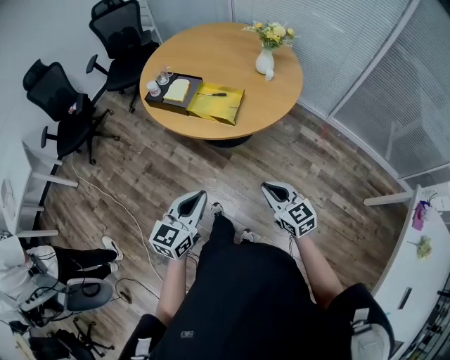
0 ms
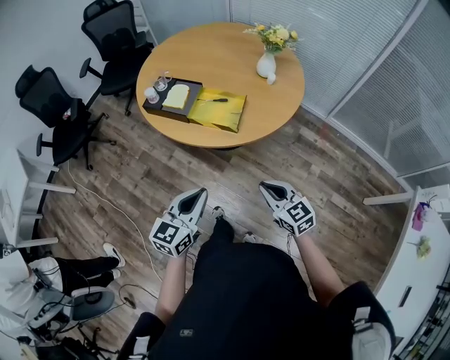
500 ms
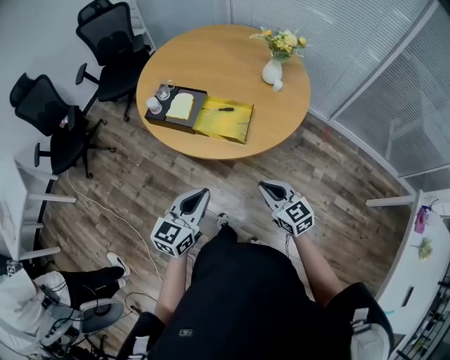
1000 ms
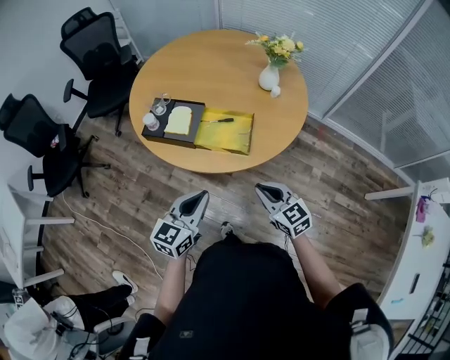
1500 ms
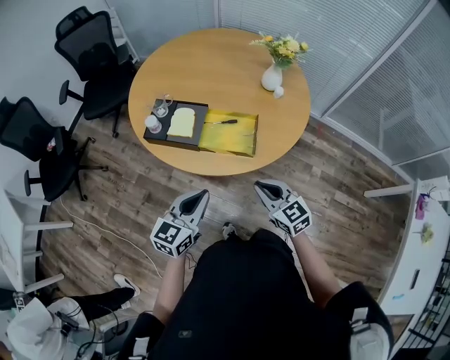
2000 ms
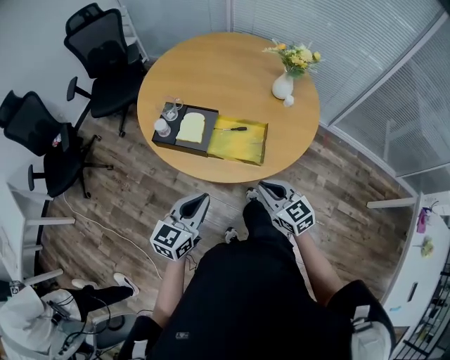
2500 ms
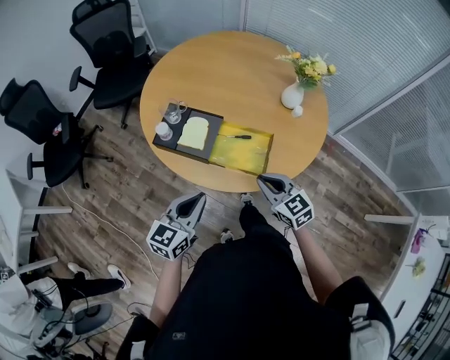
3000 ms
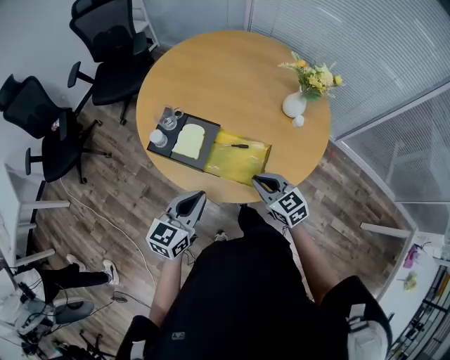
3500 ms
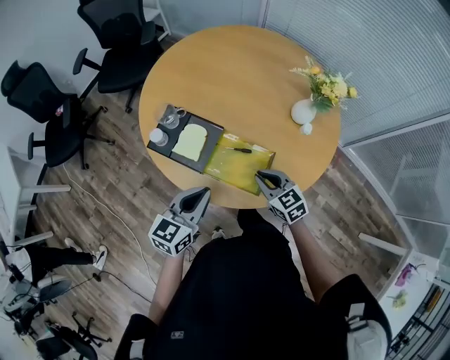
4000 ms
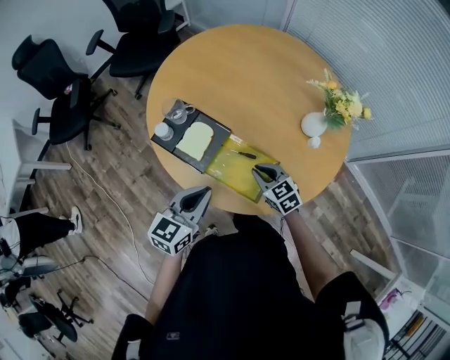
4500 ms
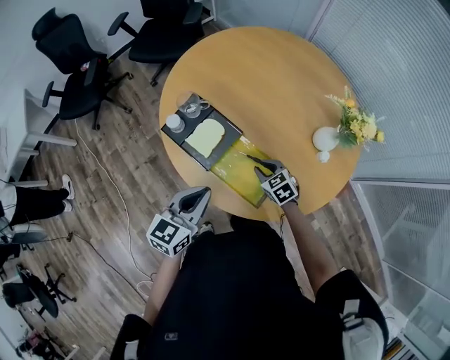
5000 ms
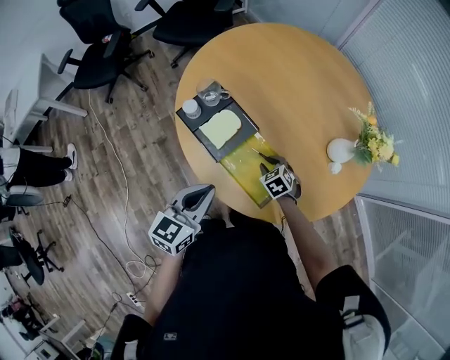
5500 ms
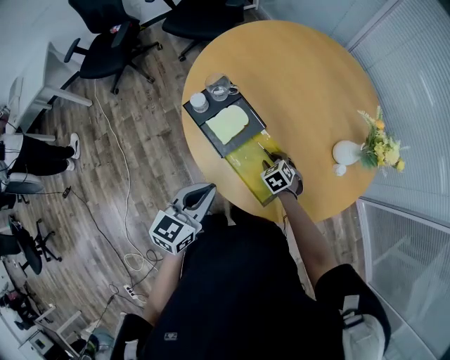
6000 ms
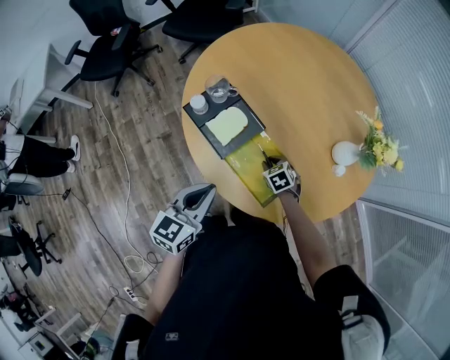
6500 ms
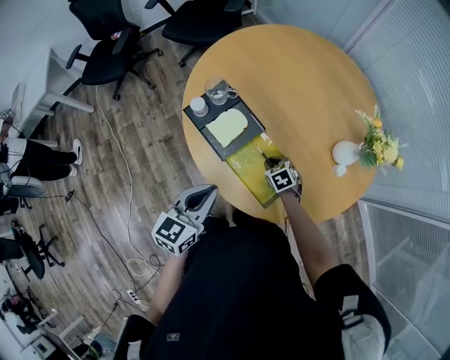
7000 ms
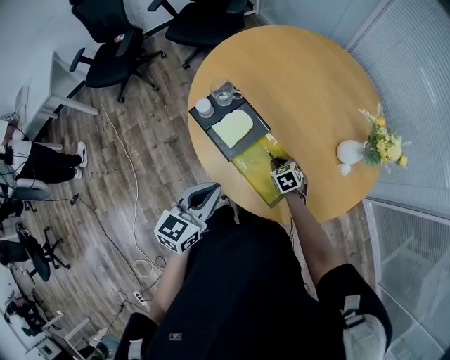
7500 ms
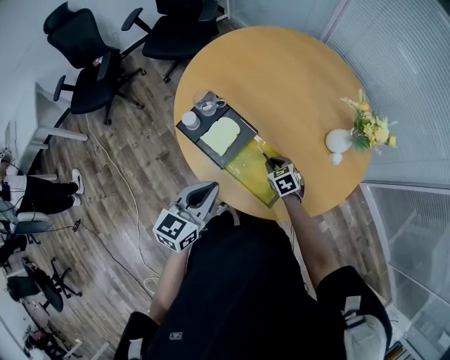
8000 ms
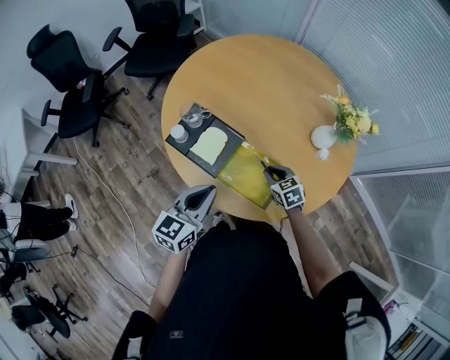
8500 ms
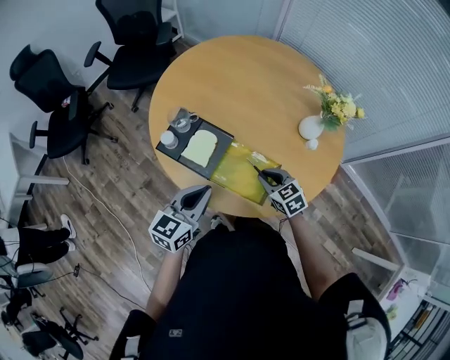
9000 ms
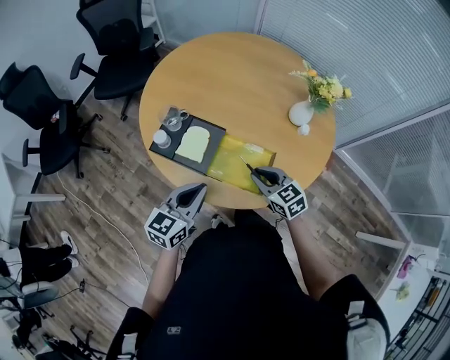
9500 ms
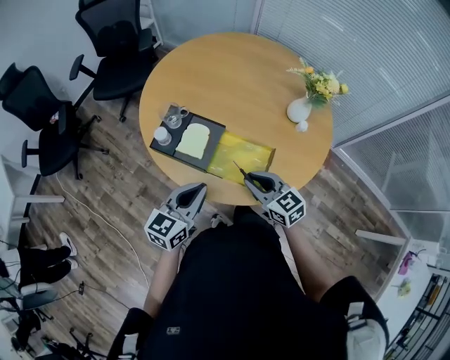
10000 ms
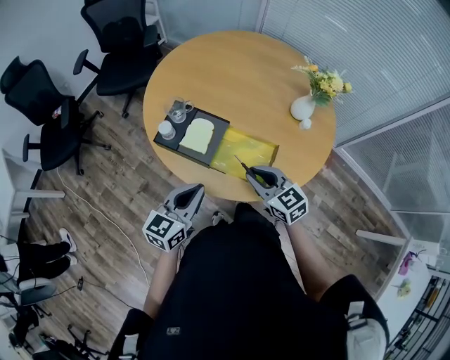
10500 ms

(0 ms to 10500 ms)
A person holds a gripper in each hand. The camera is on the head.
0 ms - 2000 ms: The two grippers go roughly 25 cm forward and to the left.
2000 ms - 4000 ms: Both grippers move forward, about 20 cm.
4000 ms - 6500 ms: The right gripper shifts about 20 cm downward and forward, and changes its angle by approximately 30 degrees; the left gripper rotates some 20 degrees.
6500 ms - 8500 ms: The right gripper is displaced upward by approximately 10 cm, and rotates some 20 degrees.
8500 ms - 10500 ms: The right gripper goes some 20 cm upward, backward and to the left, and turns by approximately 20 degrees, while the left gripper moves backward, approximately 5 cm.

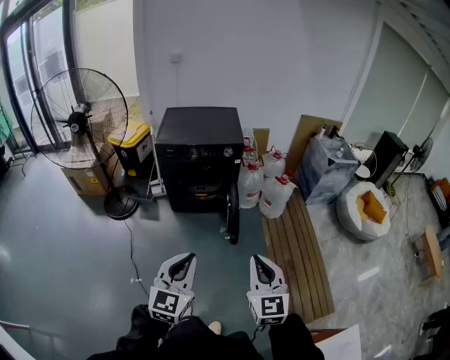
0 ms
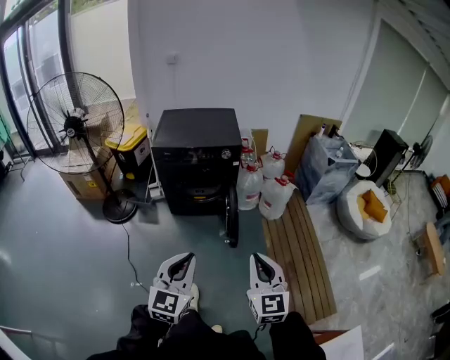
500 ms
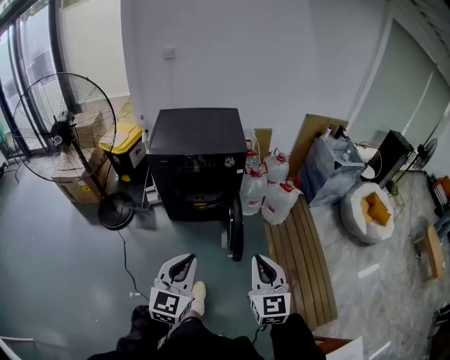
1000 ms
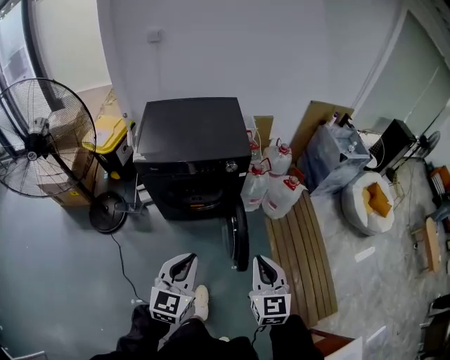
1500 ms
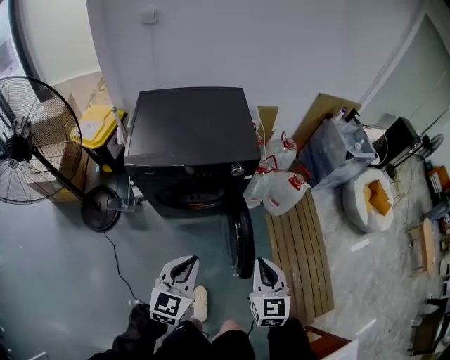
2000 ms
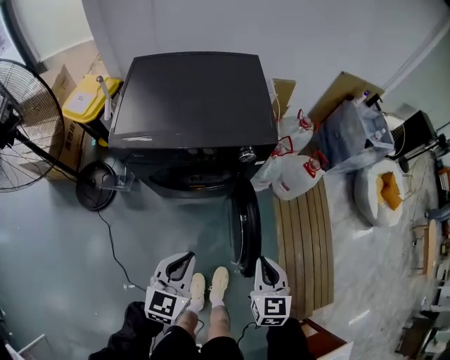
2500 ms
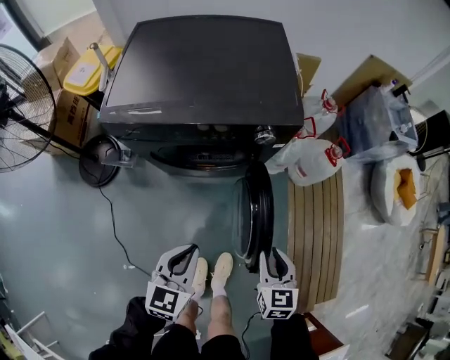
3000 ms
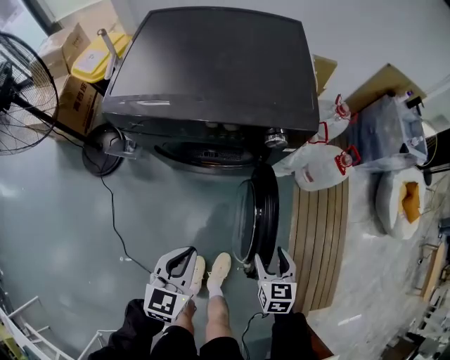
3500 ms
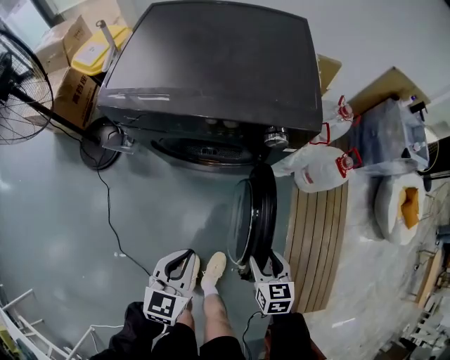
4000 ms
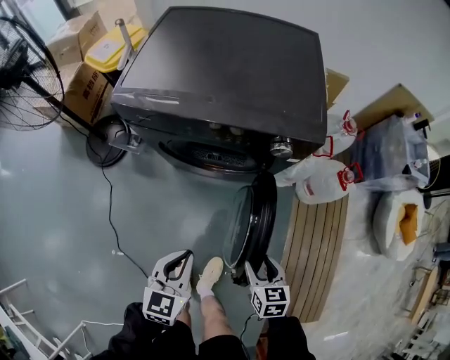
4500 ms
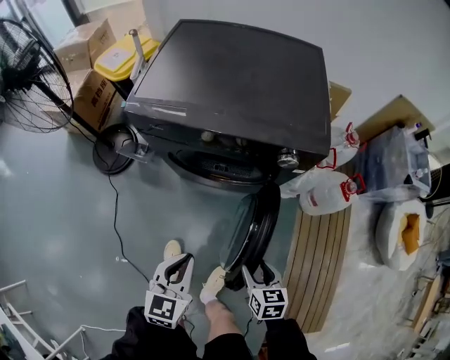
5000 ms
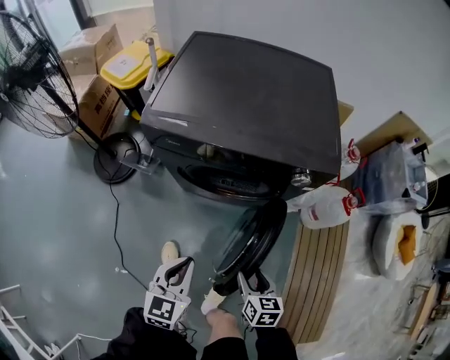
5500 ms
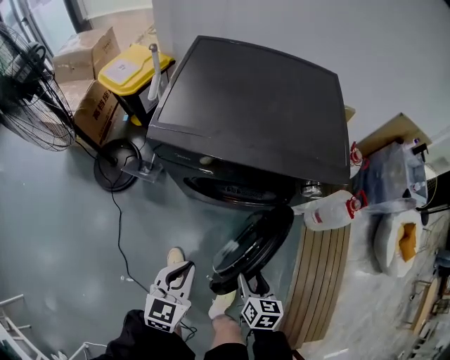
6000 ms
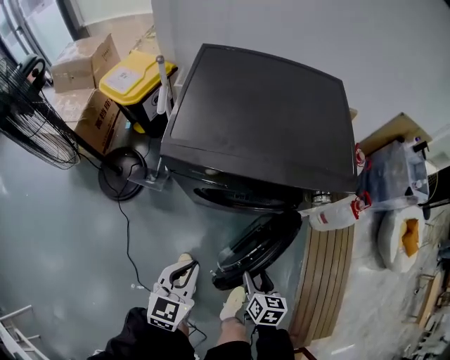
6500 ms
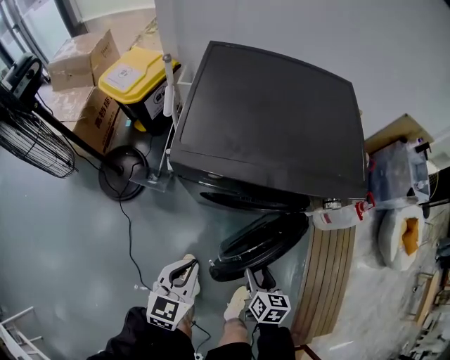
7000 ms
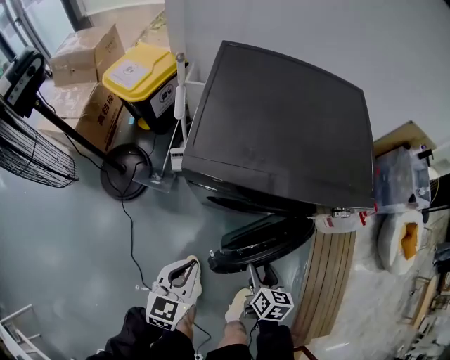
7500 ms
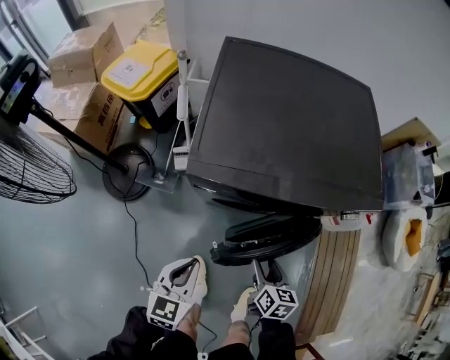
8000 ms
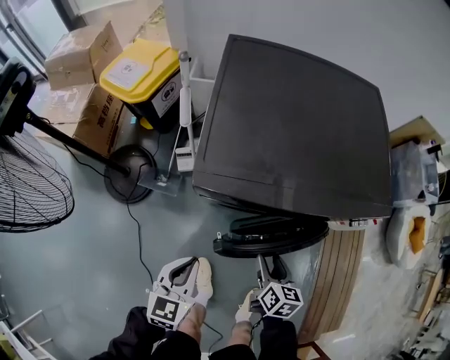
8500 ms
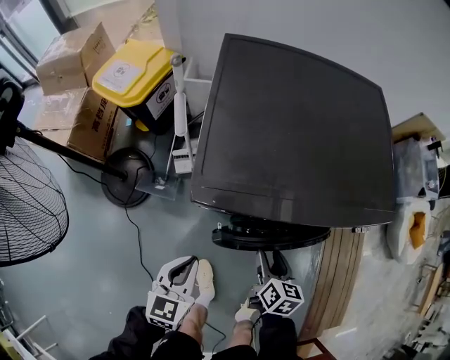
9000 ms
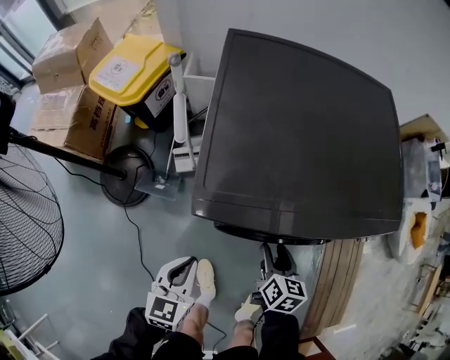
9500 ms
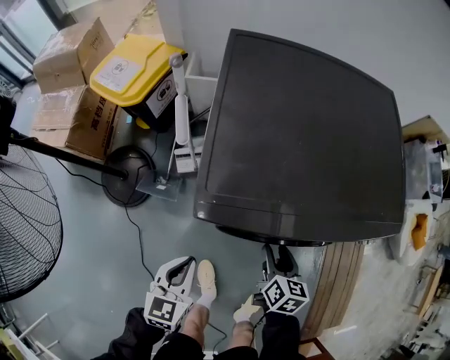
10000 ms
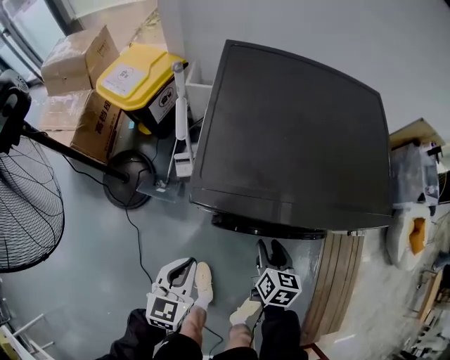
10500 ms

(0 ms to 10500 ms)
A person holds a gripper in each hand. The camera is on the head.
0 ms - 2000 ms: The pair of grippers is taken forward, some 50 cm.
2000 ms - 4000 ms: Both grippers travel together downward, approximately 30 cm. The left gripper swivels some 20 degrees. Meanwhile the right gripper turns by about 30 degrees, and opens.
4000 ms - 6500 ms: The right gripper goes approximately 20 cm to the left; the left gripper goes about 20 cm to the left and forward.
6500 ms - 8500 ms: The right gripper shifts about 20 cm forward and to the left, while the left gripper heads to the left and forward, covering some 15 cm.
8500 ms - 10500 ms: The right gripper heads forward, covering about 10 cm.

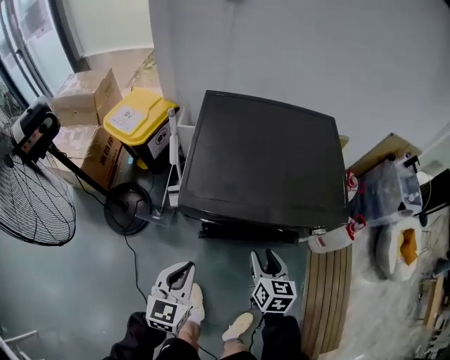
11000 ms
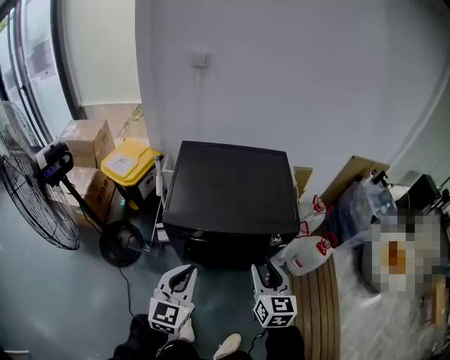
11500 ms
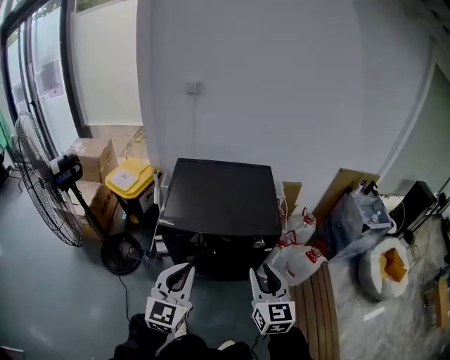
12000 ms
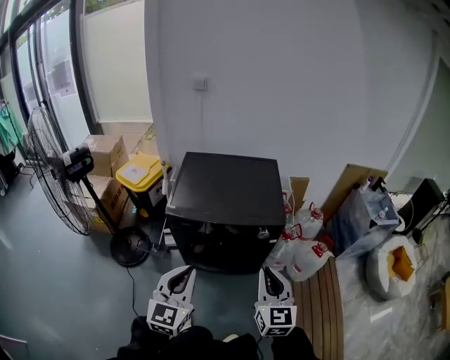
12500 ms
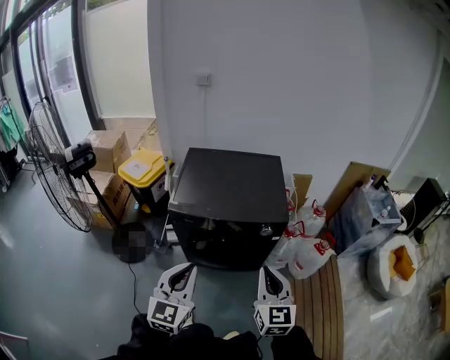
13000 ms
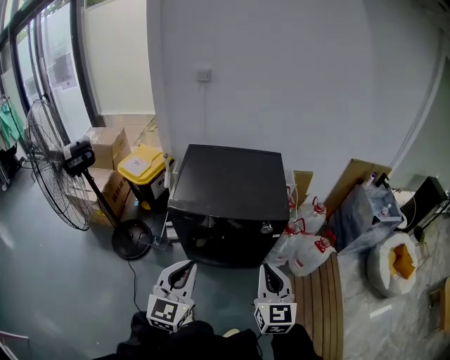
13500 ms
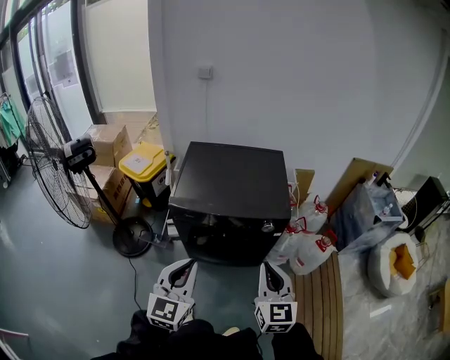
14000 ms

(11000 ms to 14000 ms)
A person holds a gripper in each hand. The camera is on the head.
11000 ms - 12500 ms: The grippers both shift upward, backward and to the right by about 40 cm. The right gripper swivels about 30 degrees, and closes.
12500 ms - 14000 ms: The grippers stay close to where they were, moving slightly.

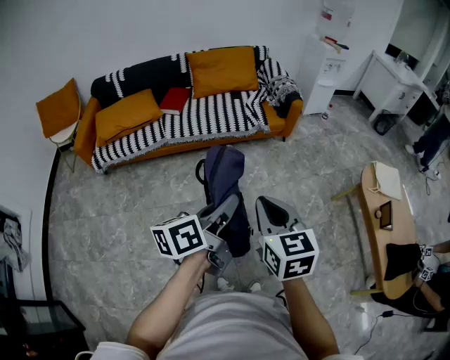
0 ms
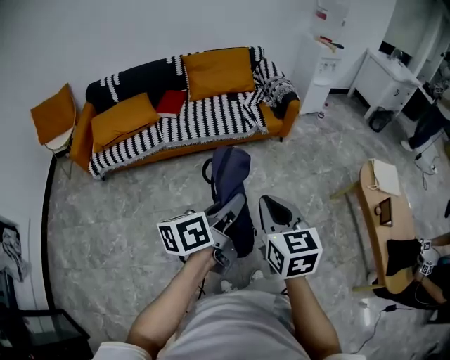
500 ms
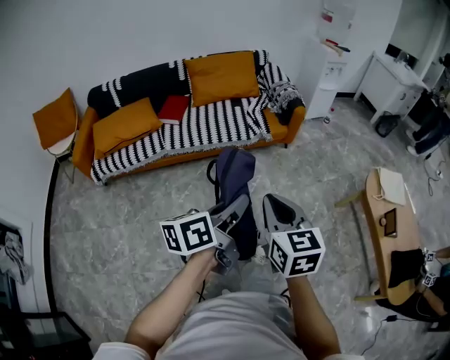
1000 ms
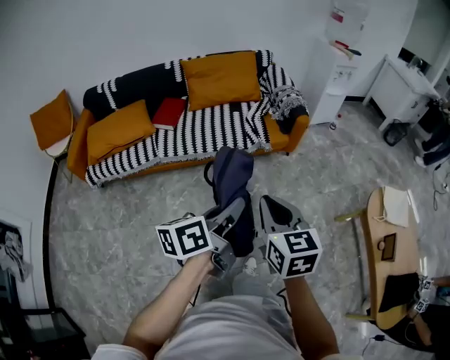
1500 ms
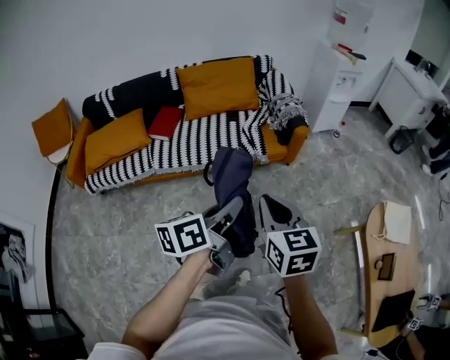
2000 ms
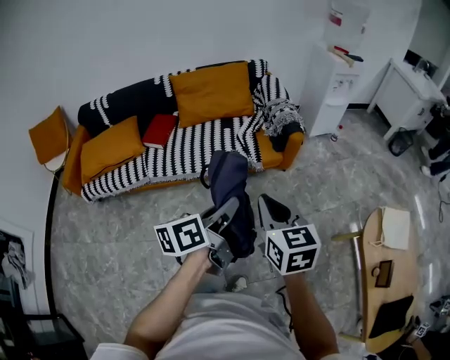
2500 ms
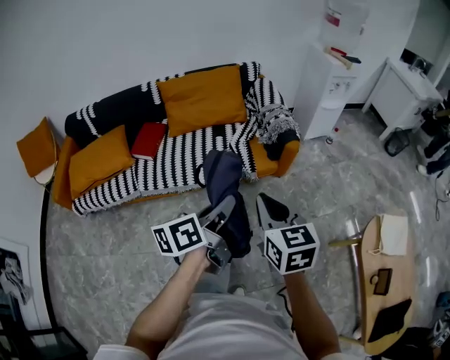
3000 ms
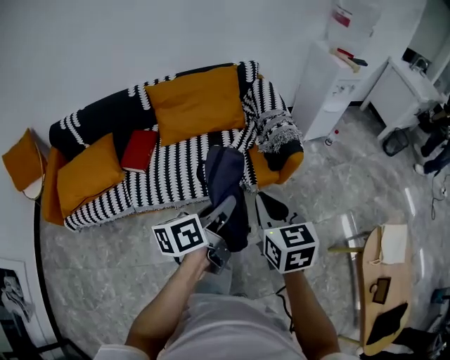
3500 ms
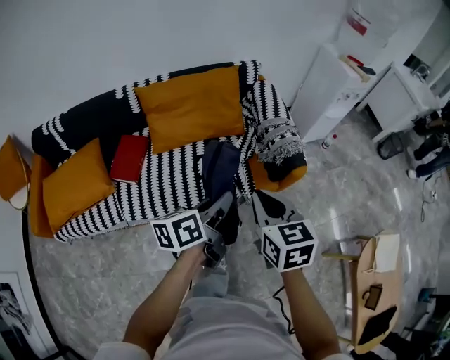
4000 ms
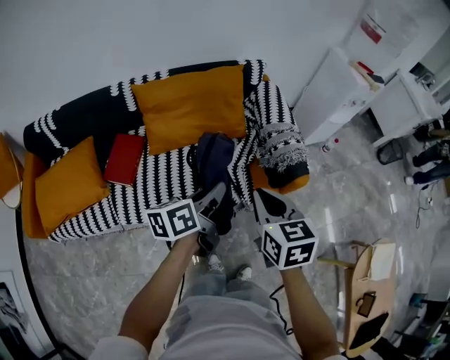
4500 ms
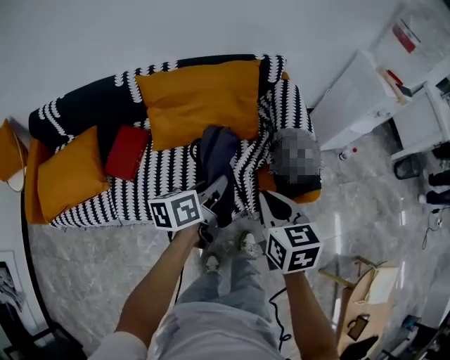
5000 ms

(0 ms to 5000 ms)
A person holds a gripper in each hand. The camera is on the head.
0 ms - 2500 ms: Both grippers move forward, about 35 cm.
2500 ms - 5000 ms: Both grippers are carried forward, roughly 50 cm.
